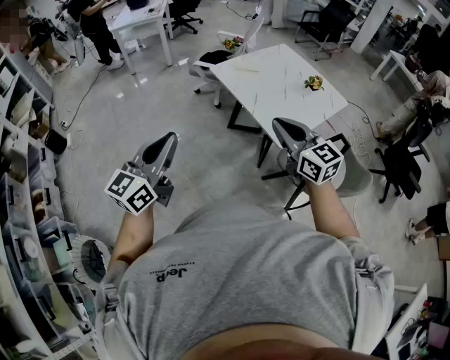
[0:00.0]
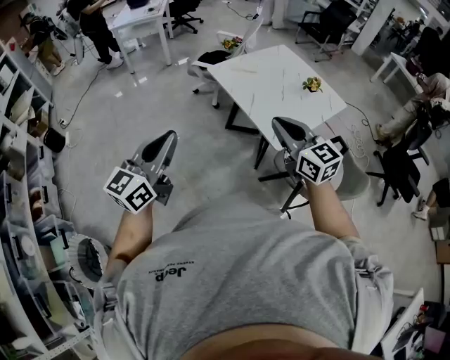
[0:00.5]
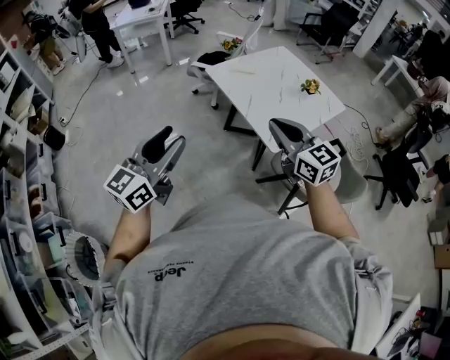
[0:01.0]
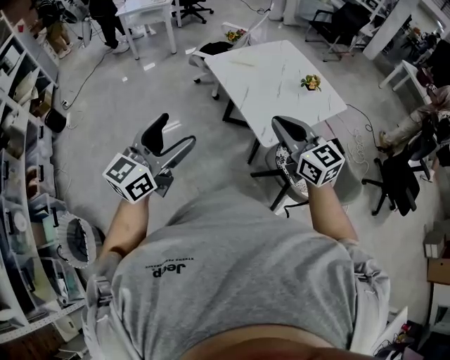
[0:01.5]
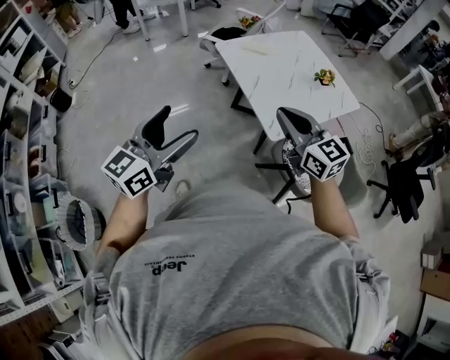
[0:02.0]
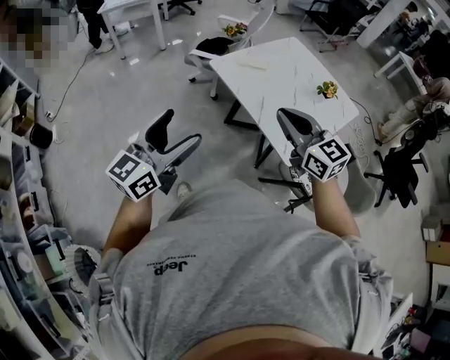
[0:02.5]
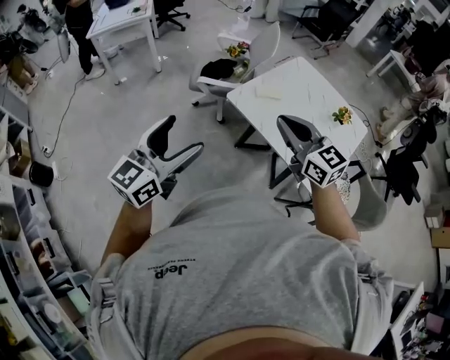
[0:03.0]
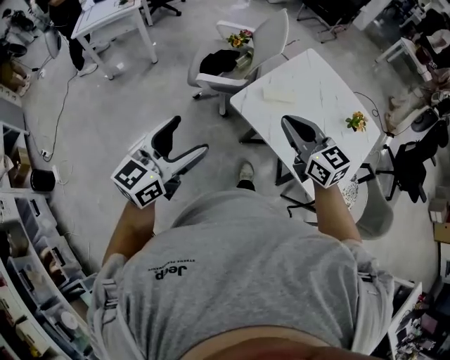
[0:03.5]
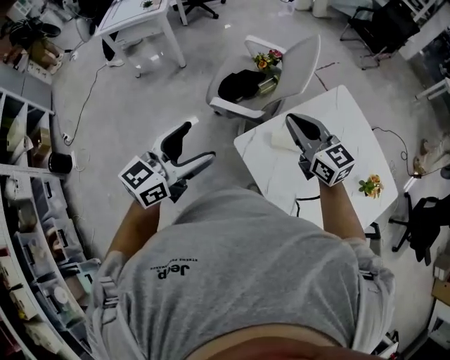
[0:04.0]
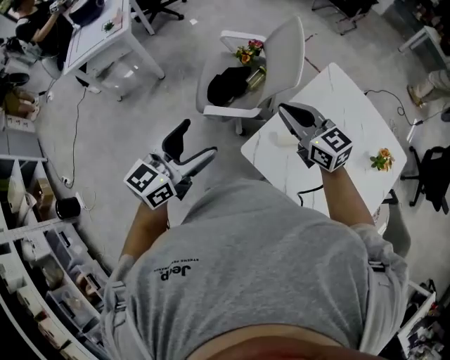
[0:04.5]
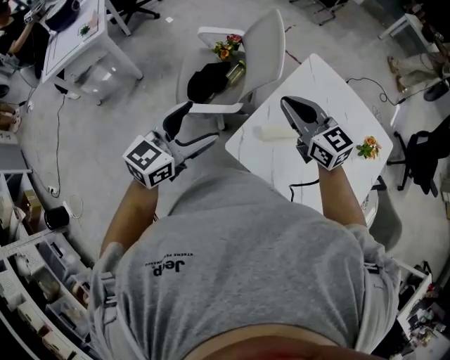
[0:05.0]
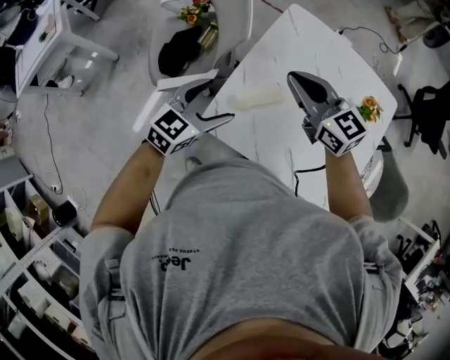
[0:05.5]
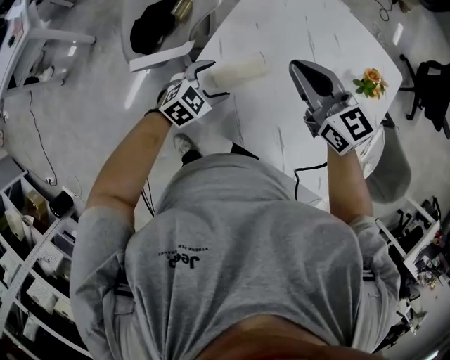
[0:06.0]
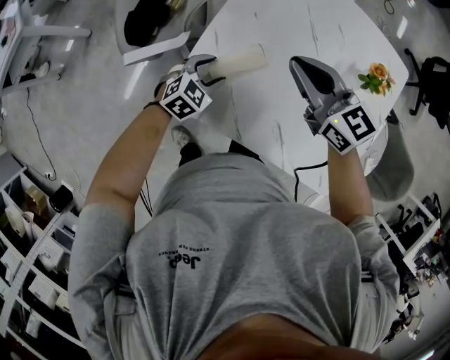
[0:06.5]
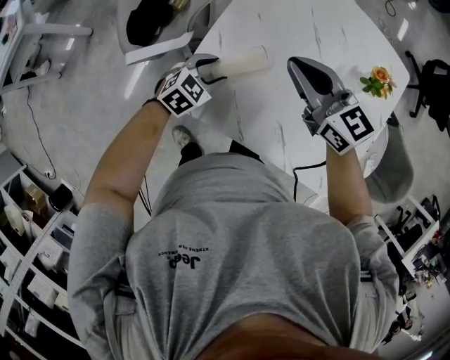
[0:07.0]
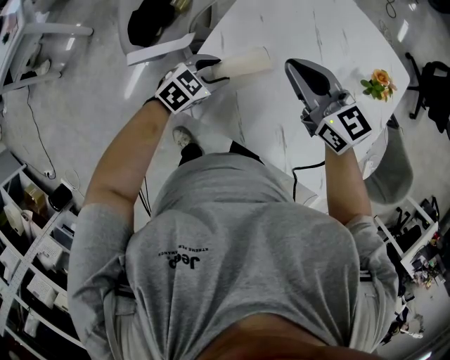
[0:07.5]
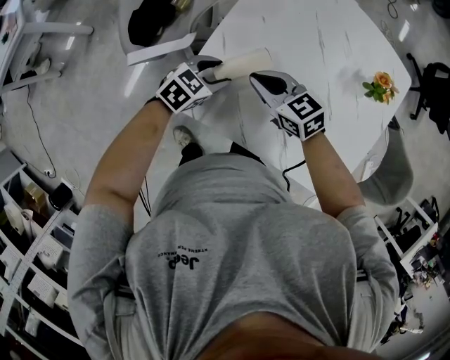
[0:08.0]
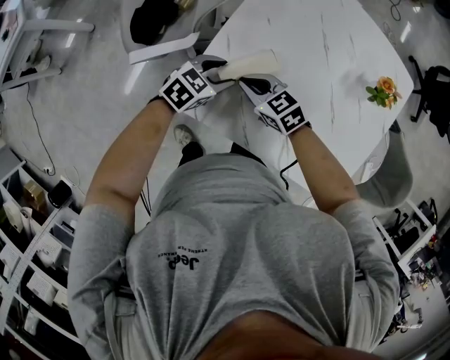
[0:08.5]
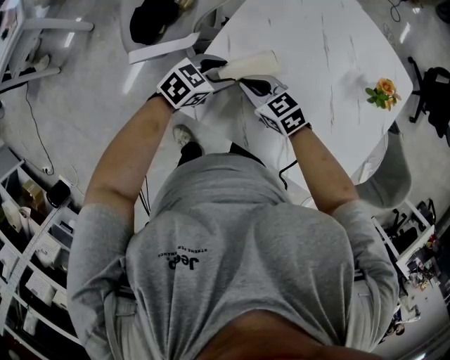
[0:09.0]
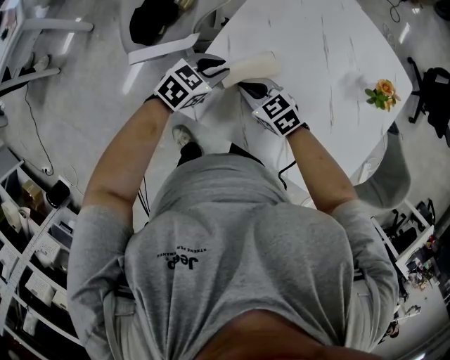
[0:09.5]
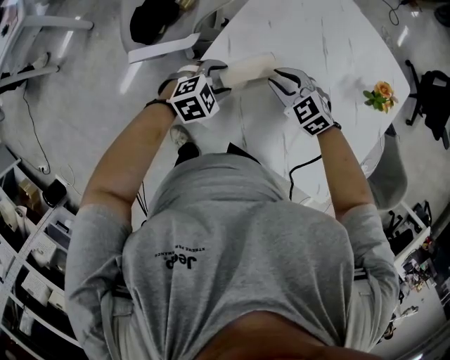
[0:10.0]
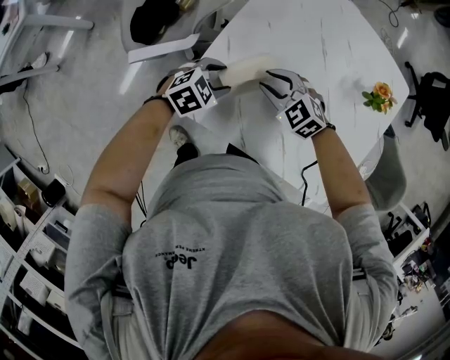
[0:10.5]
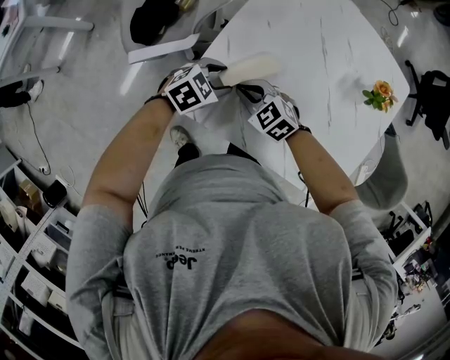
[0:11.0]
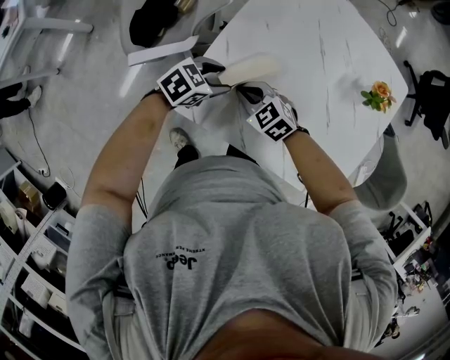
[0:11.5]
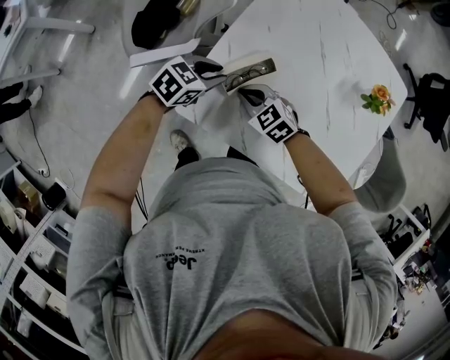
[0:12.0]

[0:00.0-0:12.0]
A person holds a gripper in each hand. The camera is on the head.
0:00.0 to 0:02.0: The grippers both shift to the right by roughly 10 cm. The left gripper opens its fingers.
0:02.0 to 0:04.0: Both grippers are carried forward, approximately 70 cm.
0:04.0 to 0:06.0: The right gripper moves about 20 cm, and turns by about 30 degrees; the left gripper moves downward, roughly 35 cm, and tips its fingers downward by roughly 40 degrees.
0:06.0 to 0:08.0: The left gripper closes up. Meanwhile the right gripper is displaced downward and to the left by some 15 cm, and rotates about 20 degrees.
0:08.0 to 0:10.0: The right gripper is displaced downward by approximately 5 cm, and turns by some 30 degrees. The left gripper closes and opens again.
0:10.0 to 0:12.0: The left gripper ends up roughly 5 cm from where it was, and rotates approximately 30 degrees, while the right gripper moves roughly 10 cm.

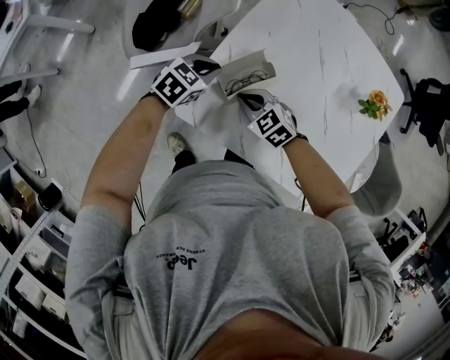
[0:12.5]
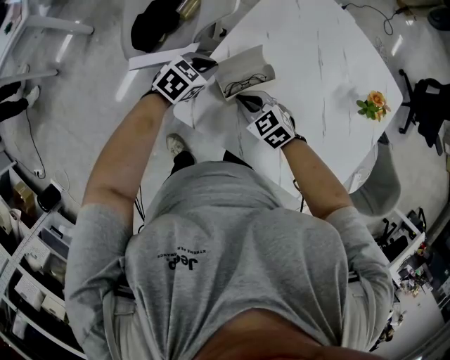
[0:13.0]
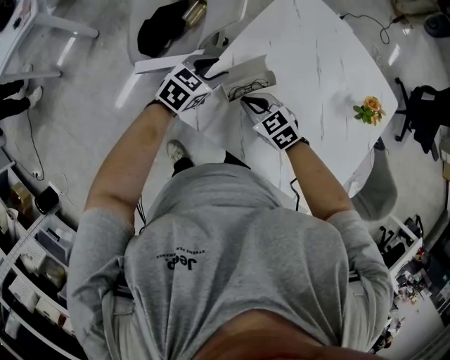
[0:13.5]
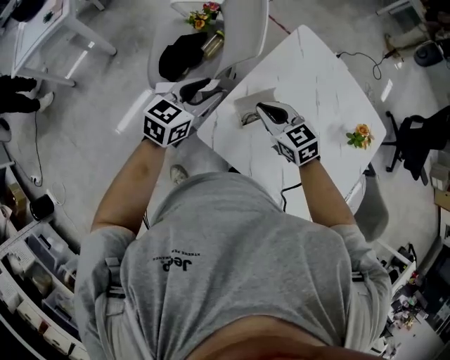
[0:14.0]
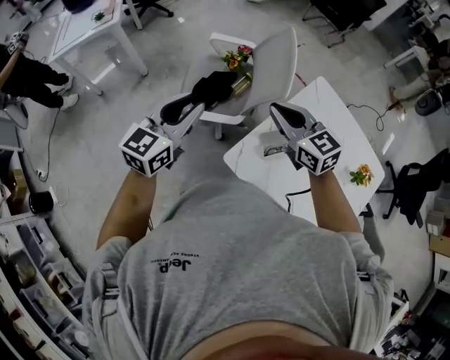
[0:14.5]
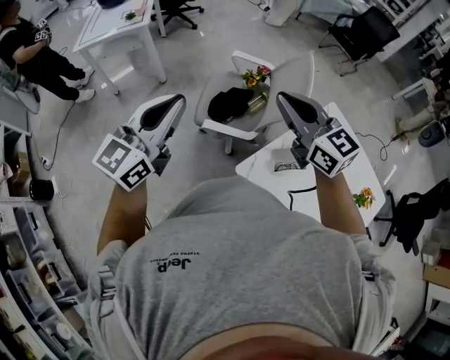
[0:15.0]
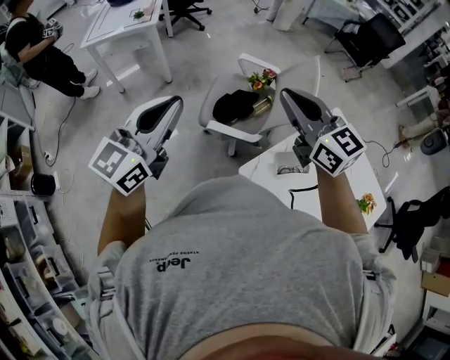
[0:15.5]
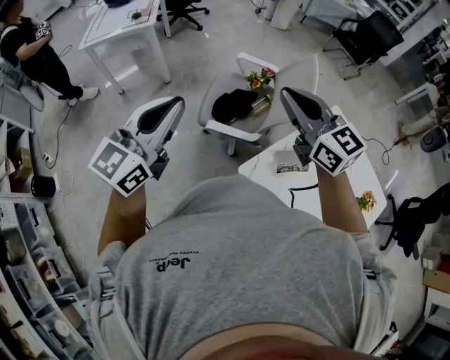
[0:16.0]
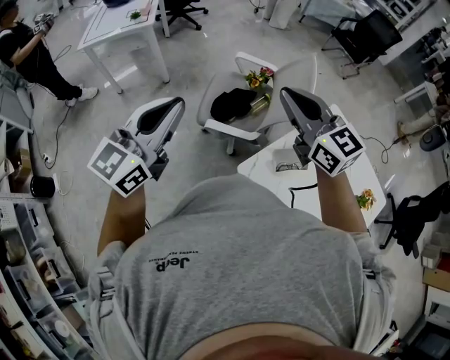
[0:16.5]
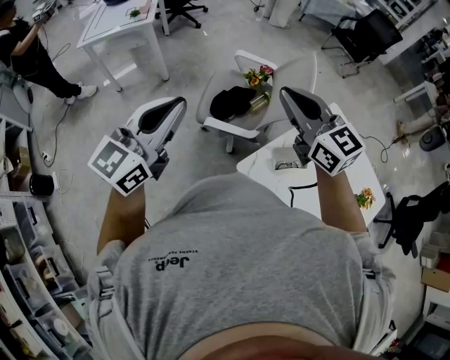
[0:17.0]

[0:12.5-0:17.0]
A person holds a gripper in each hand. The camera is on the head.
0:12.5 to 0:14.5: The right gripper shifts about 35 cm upward, and points its fingers about 30 degrees further upward, while the left gripper moves upward and to the left, some 40 cm, and tips its fingers upward by some 40 degrees.
0:14.5 to 0:17.0: The left gripper is displaced upward, to the left and backward by some 15 cm. The right gripper moves upward and to the left, roughly 15 cm.

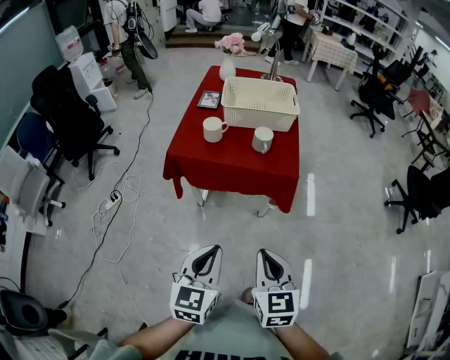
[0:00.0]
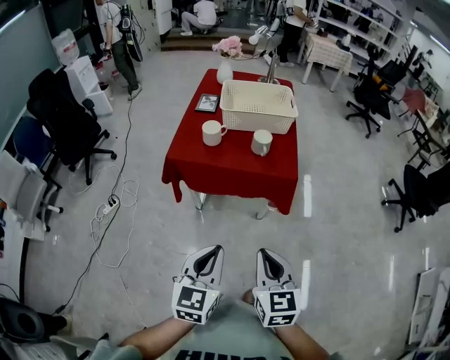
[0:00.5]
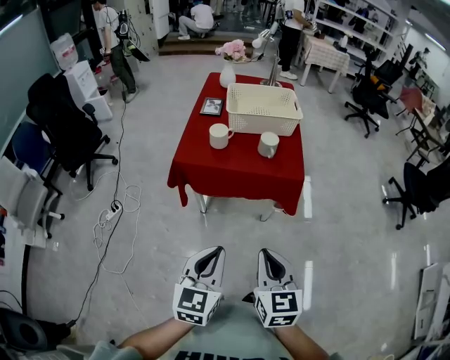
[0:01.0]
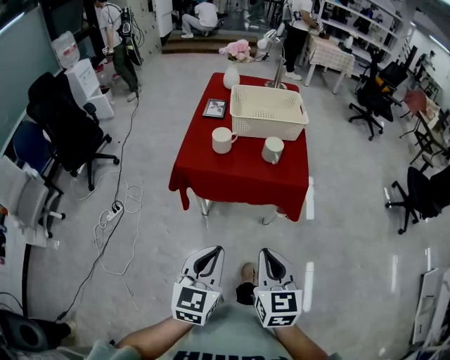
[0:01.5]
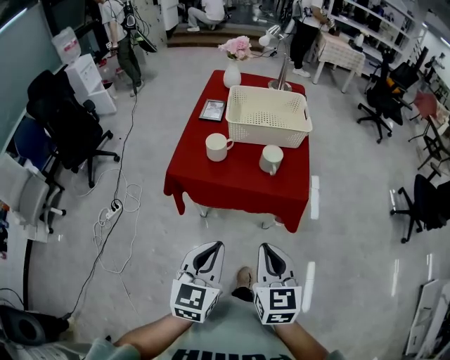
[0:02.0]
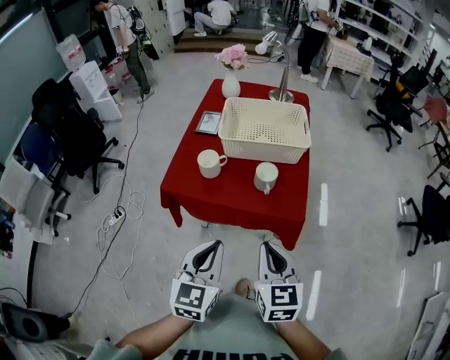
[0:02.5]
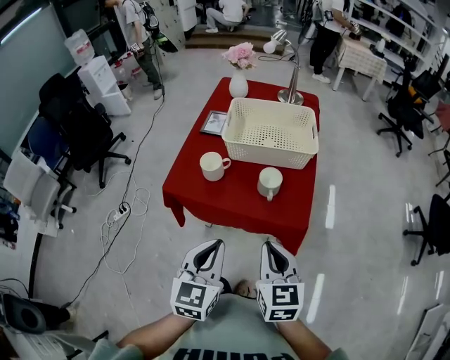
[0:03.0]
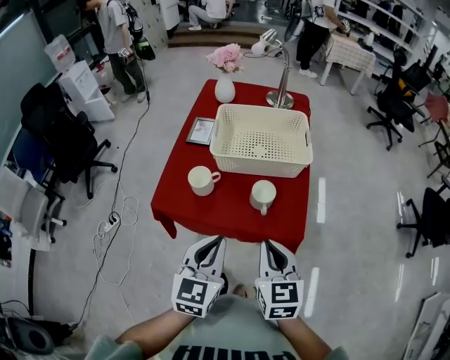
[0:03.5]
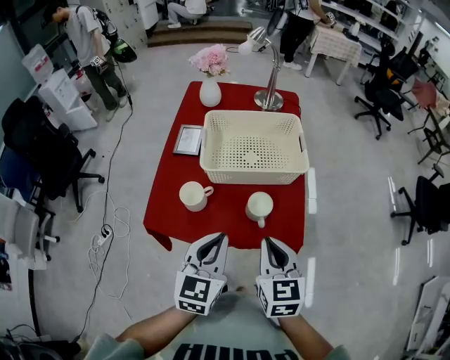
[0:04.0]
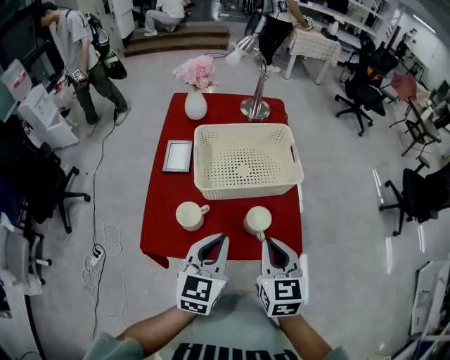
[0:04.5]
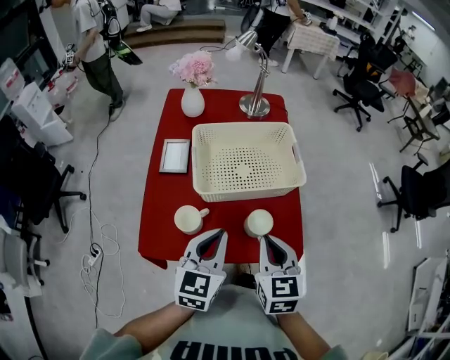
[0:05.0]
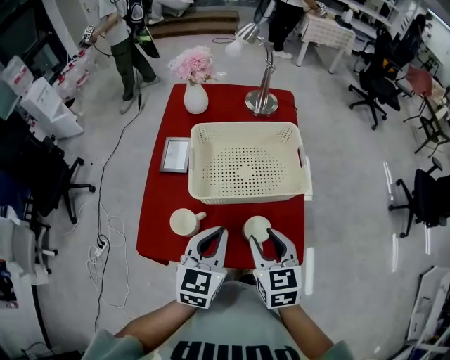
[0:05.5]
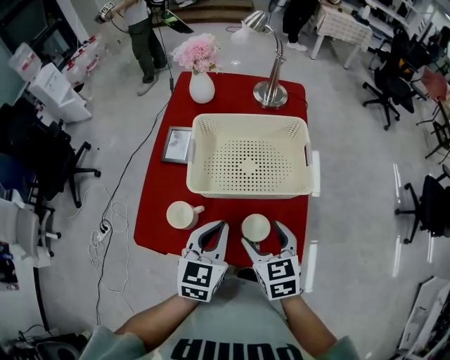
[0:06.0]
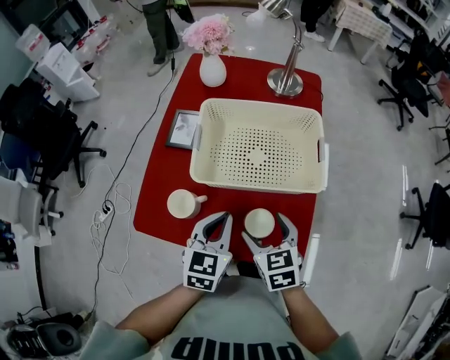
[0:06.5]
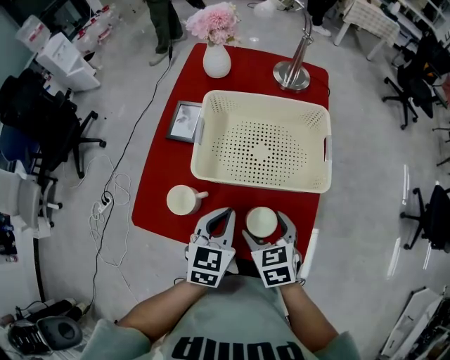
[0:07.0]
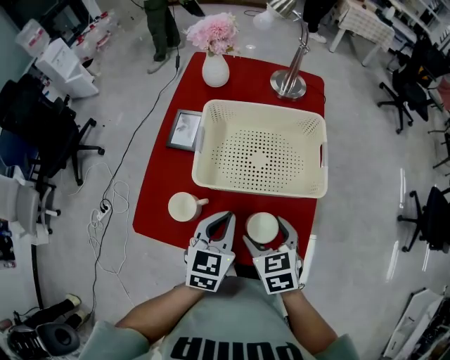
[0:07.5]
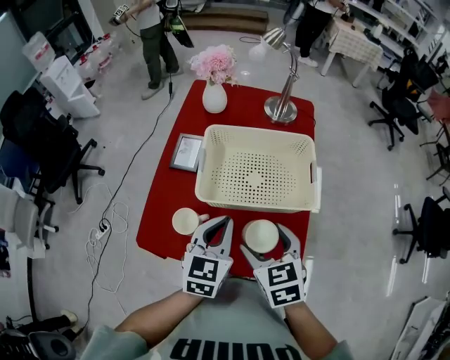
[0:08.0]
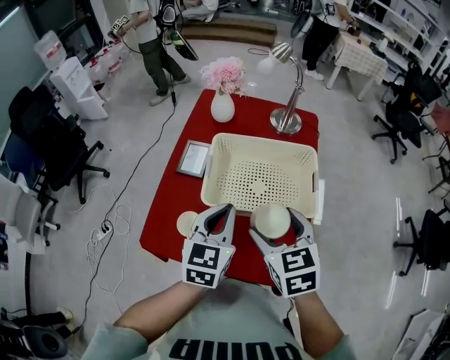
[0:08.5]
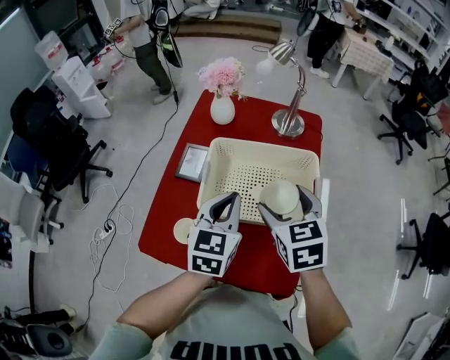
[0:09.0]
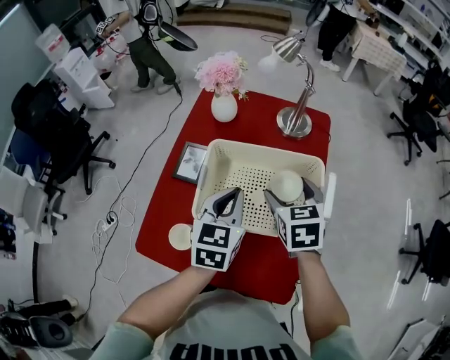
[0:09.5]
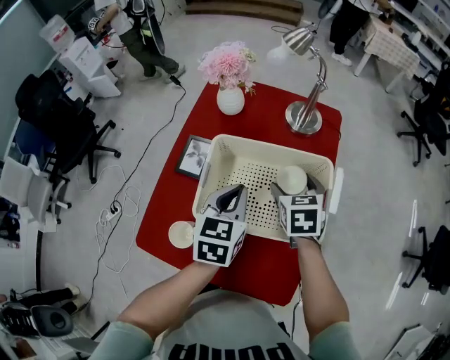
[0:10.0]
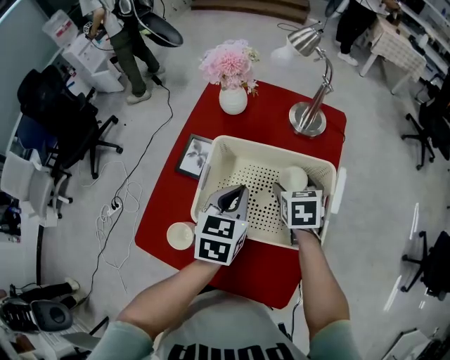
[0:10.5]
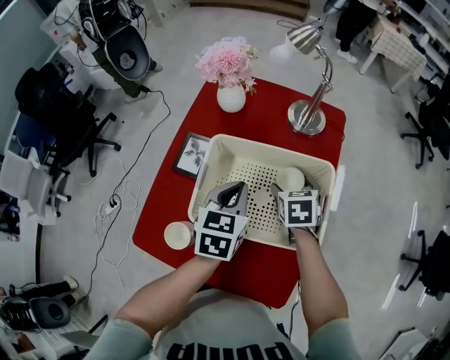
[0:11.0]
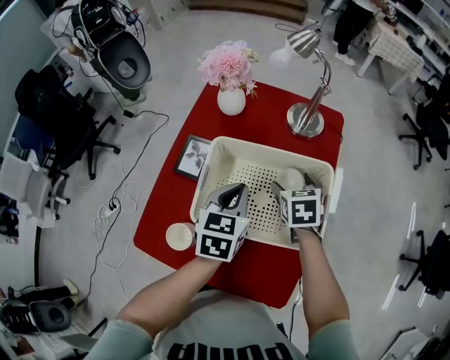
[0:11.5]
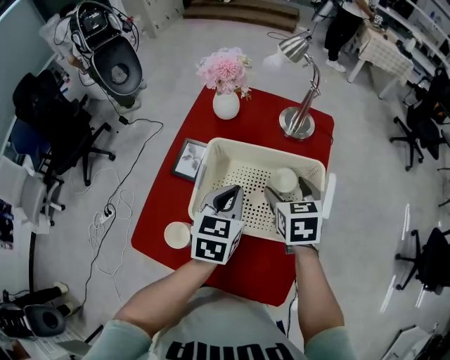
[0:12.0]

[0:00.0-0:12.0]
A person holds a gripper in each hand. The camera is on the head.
0:00.0 to 0:02.0: Both grippers travel together forward, roughly 10 cm.
0:02.0 to 0:04.0: Both grippers move forward, about 25 cm.
0:04.0 to 0:06.0: The right gripper heads forward and downward, covering about 15 cm, and opens up; the left gripper travels forward by roughly 15 cm.
0:06.0 to 0:08.0: The left gripper moves some 5 cm downward and comes back, while the right gripper moves roughly 5 cm.
0:08.0 to 0:10.0: The left gripper is displaced forward by about 15 cm, while the right gripper goes about 25 cm forward.
0:10.0 to 0:12.0: The right gripper reaches roughly 5 cm downward, then returns.
